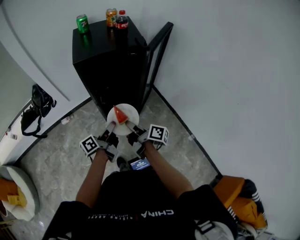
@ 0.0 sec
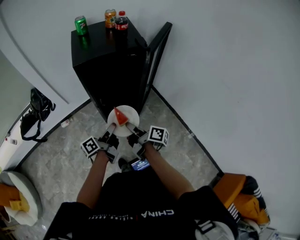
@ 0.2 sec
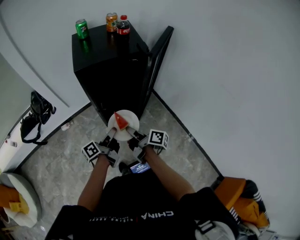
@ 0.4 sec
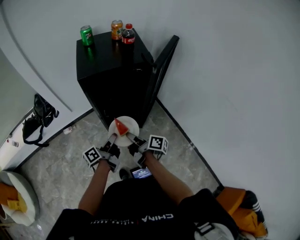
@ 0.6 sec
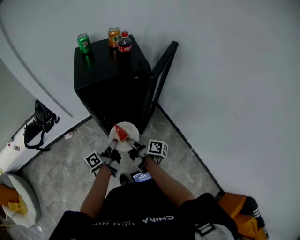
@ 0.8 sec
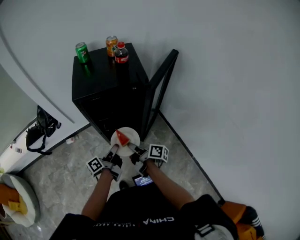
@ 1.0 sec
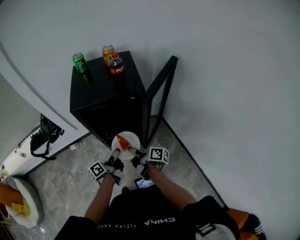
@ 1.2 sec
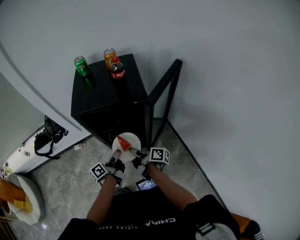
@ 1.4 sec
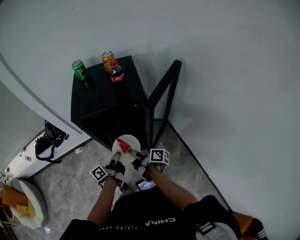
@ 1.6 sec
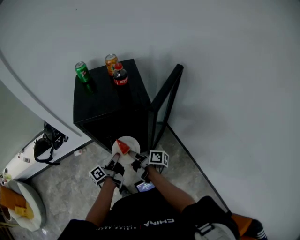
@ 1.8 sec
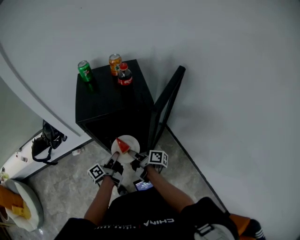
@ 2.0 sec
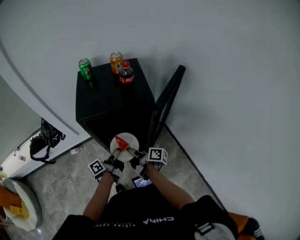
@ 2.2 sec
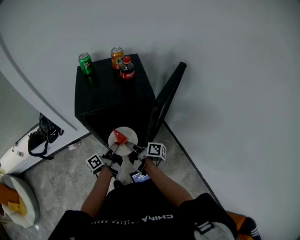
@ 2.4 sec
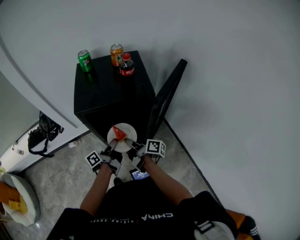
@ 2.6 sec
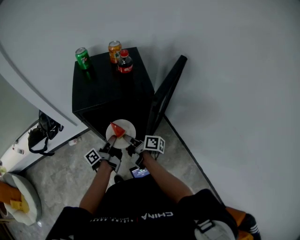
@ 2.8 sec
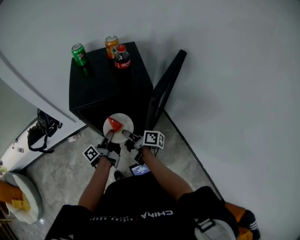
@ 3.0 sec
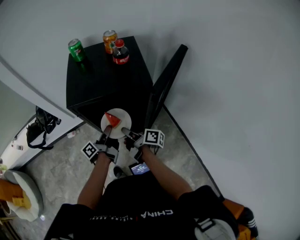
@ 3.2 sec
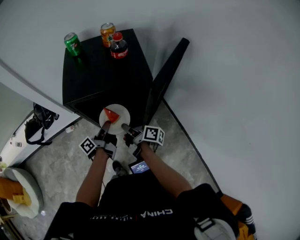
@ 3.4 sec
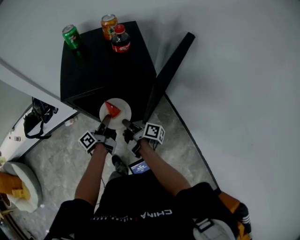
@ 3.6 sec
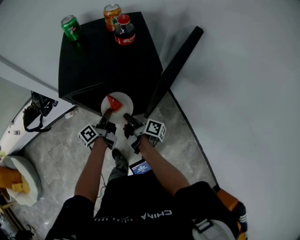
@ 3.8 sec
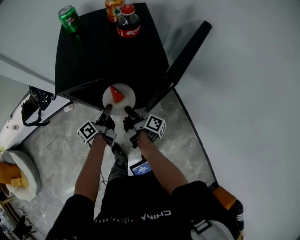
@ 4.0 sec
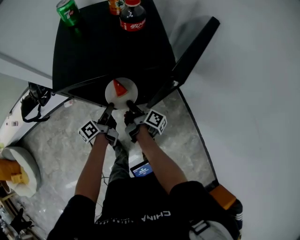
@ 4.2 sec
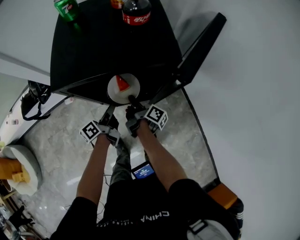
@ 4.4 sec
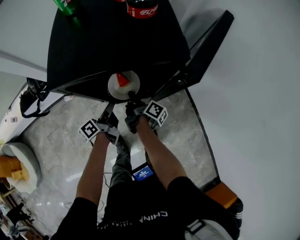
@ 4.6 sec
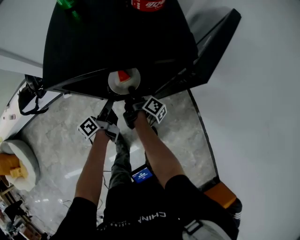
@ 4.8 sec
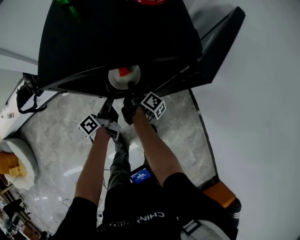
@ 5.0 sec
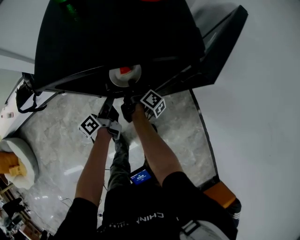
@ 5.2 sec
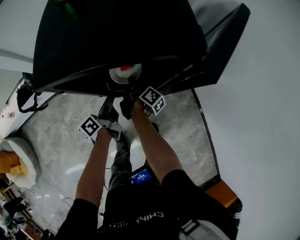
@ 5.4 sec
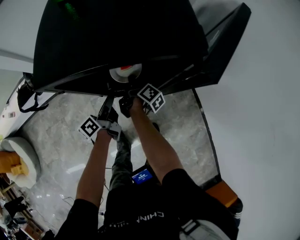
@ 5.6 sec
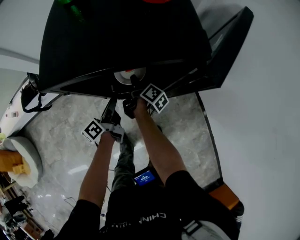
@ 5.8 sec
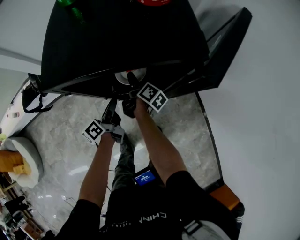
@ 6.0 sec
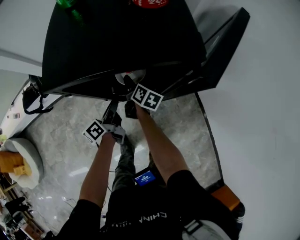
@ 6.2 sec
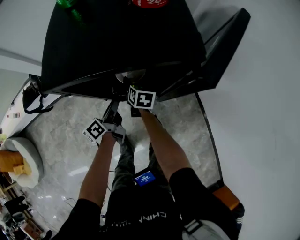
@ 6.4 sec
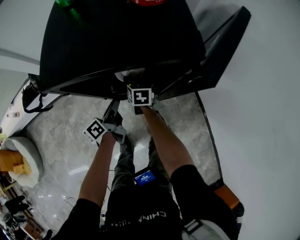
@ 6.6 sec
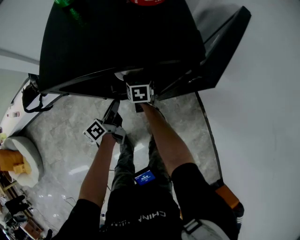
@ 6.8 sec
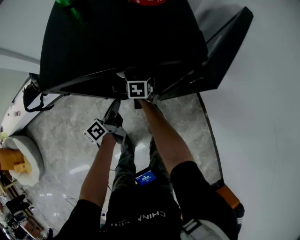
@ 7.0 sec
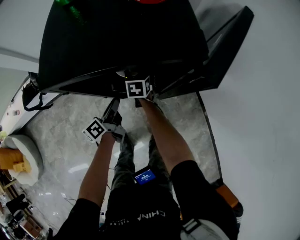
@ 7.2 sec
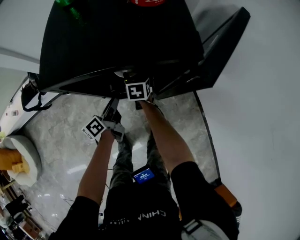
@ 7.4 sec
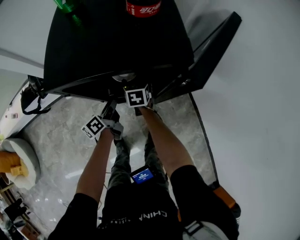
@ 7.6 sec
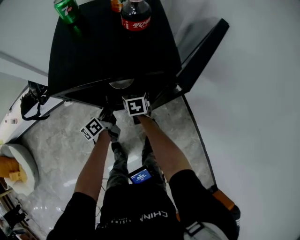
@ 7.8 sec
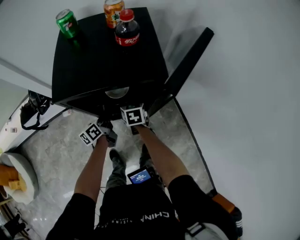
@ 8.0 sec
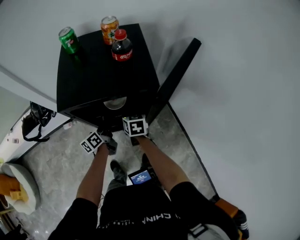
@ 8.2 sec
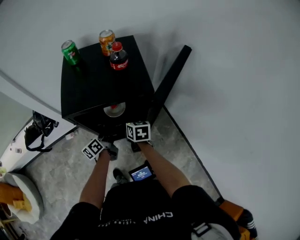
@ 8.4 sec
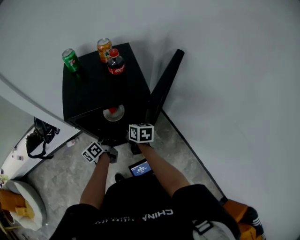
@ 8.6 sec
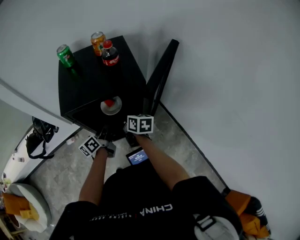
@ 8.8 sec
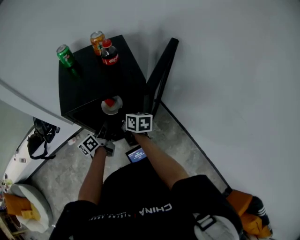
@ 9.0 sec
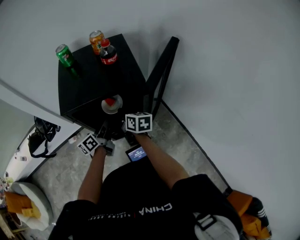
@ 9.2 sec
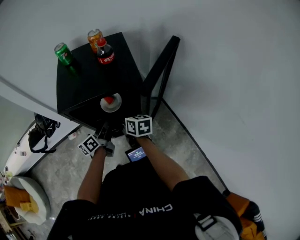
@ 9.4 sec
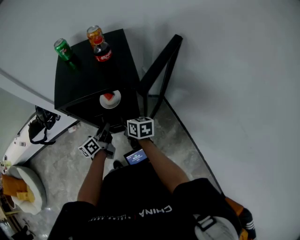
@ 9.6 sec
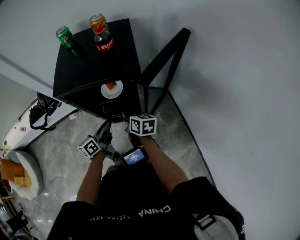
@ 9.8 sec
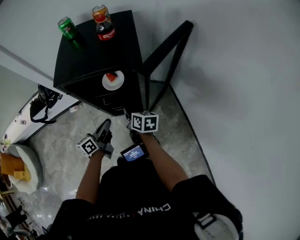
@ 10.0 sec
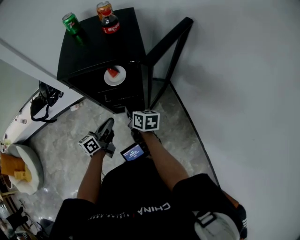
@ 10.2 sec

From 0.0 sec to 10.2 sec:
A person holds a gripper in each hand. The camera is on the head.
From 0.0 sec to 1.4 sec: Both grippers move forward, roughly 15 cm.
From 1.4 sec to 3.0 sec: Both grippers move forward, some 10 cm.
From 3.0 sec to 4.4 sec: The right gripper moves downward and forward, roughly 15 cm, and rotates roughly 20 degrees; the left gripper goes about 10 cm downward, and opens.
From 4.4 sec to 5.8 sec: The right gripper moves forward and downward, about 10 cm, while the left gripper shifts about 5 cm downward.
From 5.8 sec to 7.2 sec: The right gripper rotates around the line of its fingers by some 70 degrees, counterclockwise from behind, and opens its fingers.
From 7.2 sec to 8.8 sec: The left gripper moves upward, roughly 15 cm, rotates approximately 20 degrees, and closes its fingers; the right gripper travels upward and backward by some 25 cm, turns by some 30 degrees, and closes.
From 8.8 sec to 10.2 sec: Both grippers move backward, some 15 cm.

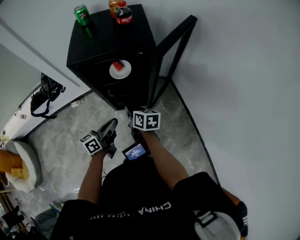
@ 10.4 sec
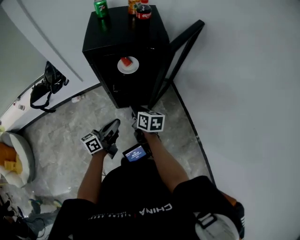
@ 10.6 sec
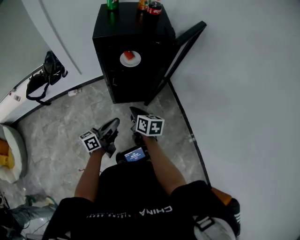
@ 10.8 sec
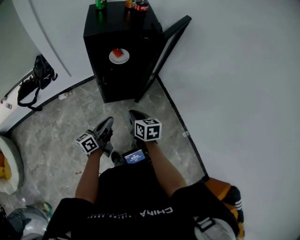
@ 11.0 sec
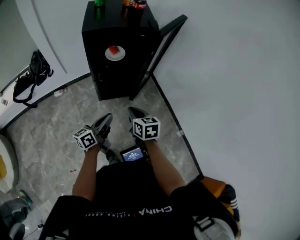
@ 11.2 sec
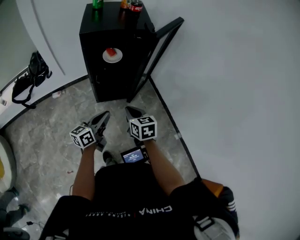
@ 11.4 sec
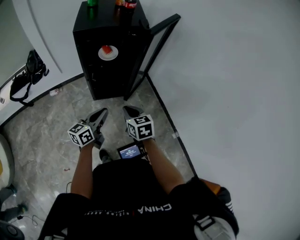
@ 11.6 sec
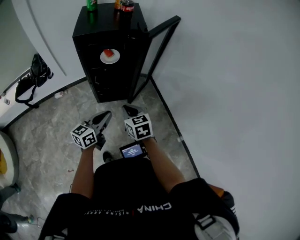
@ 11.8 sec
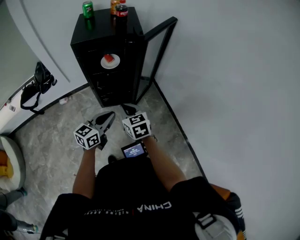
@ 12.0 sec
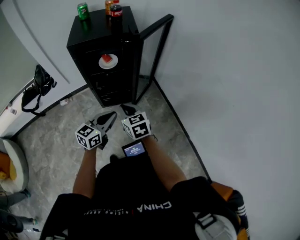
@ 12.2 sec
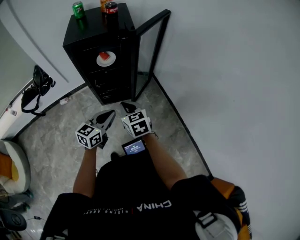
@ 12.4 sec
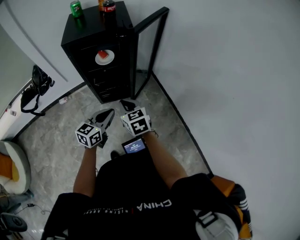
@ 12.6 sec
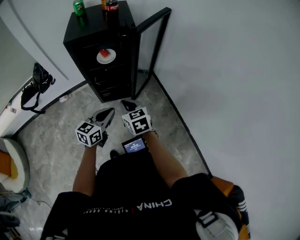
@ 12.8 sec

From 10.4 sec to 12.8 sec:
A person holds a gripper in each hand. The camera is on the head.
From 10.4 sec to 11.6 sec: The grippers both shift backward by roughly 15 cm. The right gripper turns by approximately 30 degrees.
From 11.6 sec to 12.8 sec: The left gripper goes some 10 cm to the right, and swivels approximately 20 degrees.

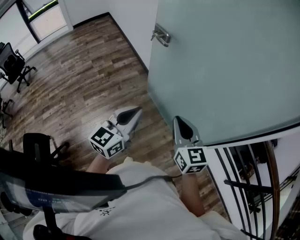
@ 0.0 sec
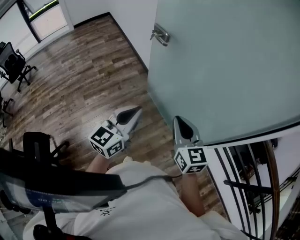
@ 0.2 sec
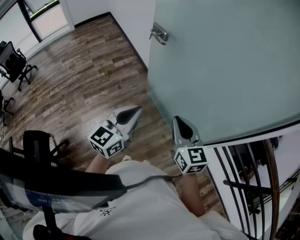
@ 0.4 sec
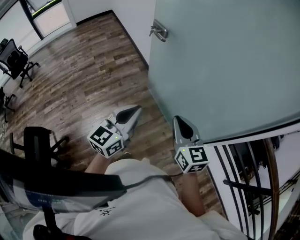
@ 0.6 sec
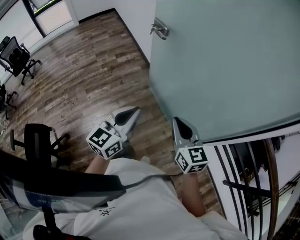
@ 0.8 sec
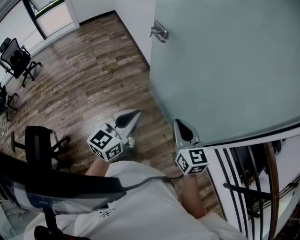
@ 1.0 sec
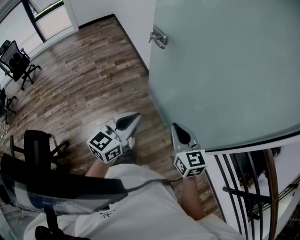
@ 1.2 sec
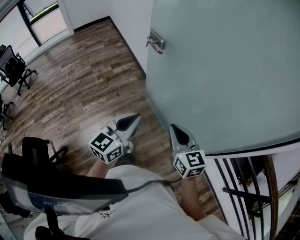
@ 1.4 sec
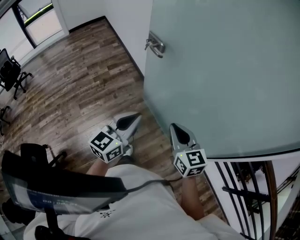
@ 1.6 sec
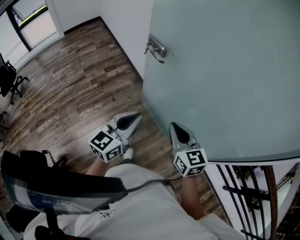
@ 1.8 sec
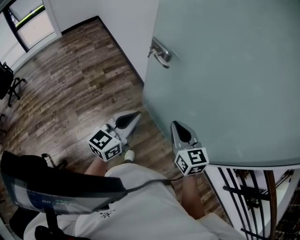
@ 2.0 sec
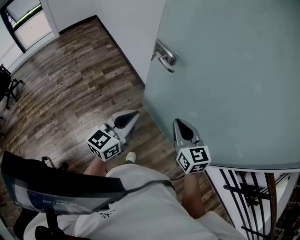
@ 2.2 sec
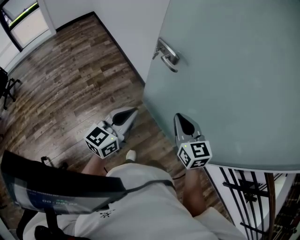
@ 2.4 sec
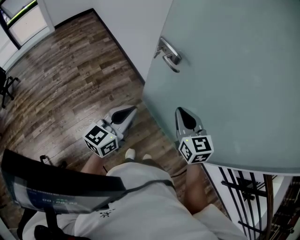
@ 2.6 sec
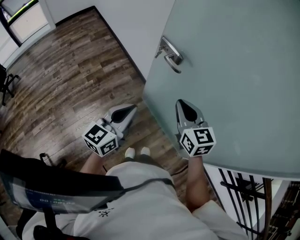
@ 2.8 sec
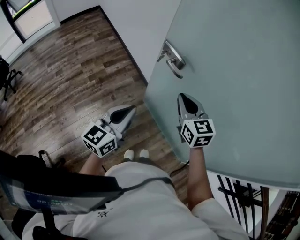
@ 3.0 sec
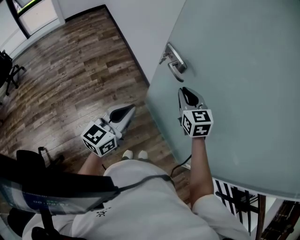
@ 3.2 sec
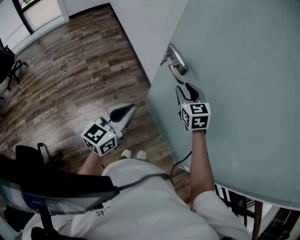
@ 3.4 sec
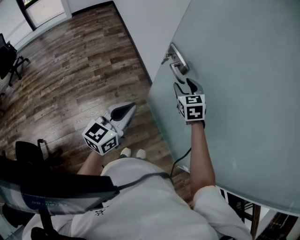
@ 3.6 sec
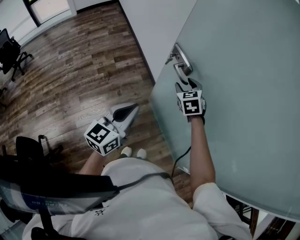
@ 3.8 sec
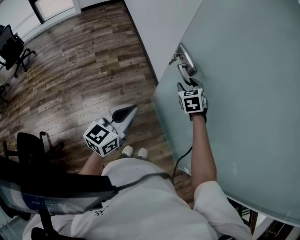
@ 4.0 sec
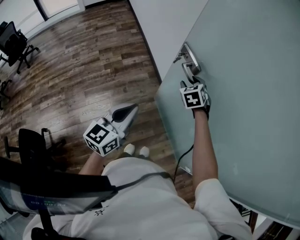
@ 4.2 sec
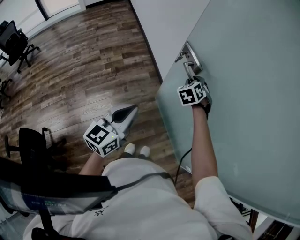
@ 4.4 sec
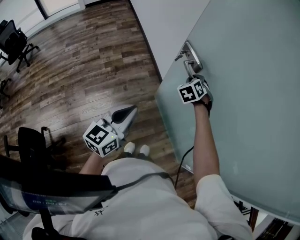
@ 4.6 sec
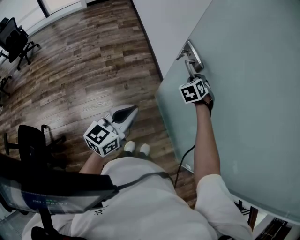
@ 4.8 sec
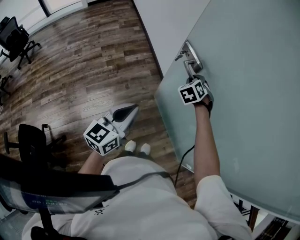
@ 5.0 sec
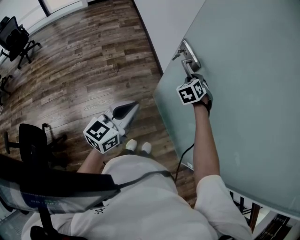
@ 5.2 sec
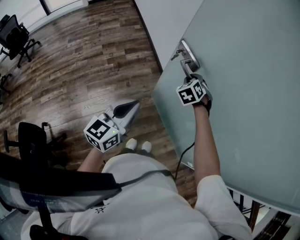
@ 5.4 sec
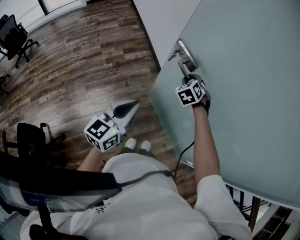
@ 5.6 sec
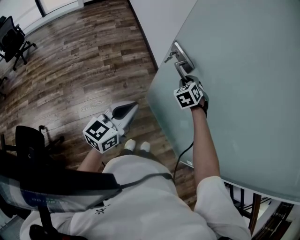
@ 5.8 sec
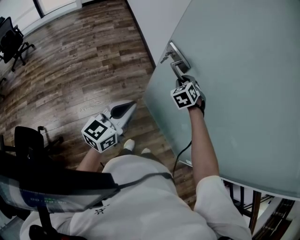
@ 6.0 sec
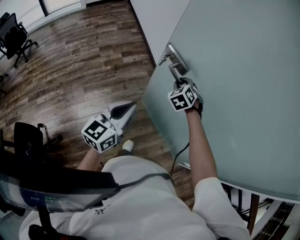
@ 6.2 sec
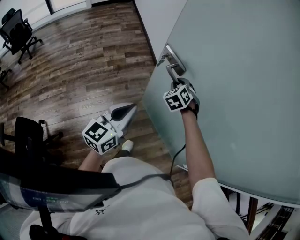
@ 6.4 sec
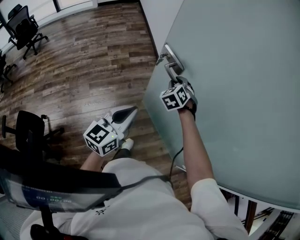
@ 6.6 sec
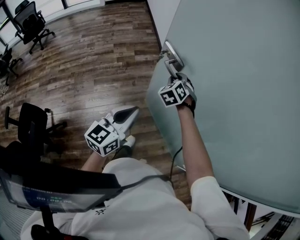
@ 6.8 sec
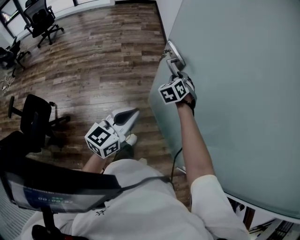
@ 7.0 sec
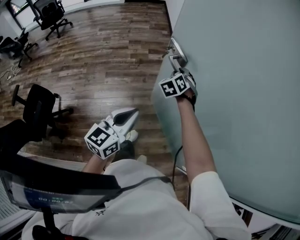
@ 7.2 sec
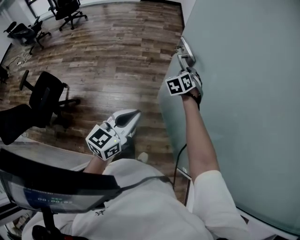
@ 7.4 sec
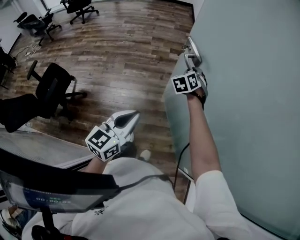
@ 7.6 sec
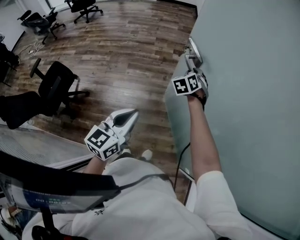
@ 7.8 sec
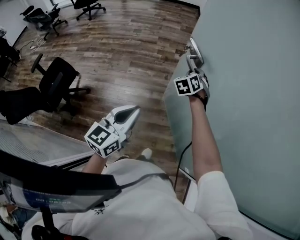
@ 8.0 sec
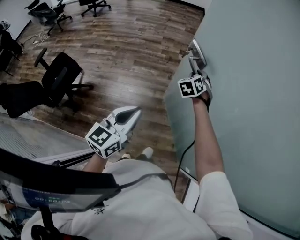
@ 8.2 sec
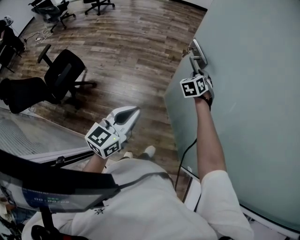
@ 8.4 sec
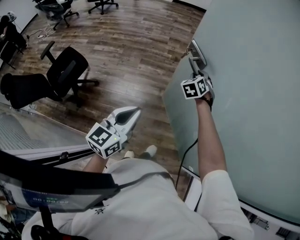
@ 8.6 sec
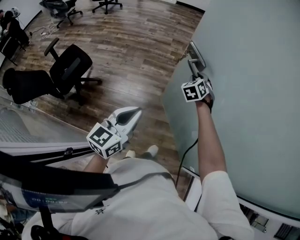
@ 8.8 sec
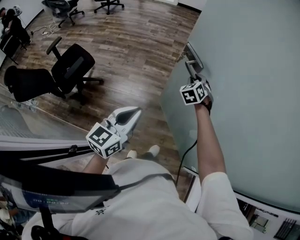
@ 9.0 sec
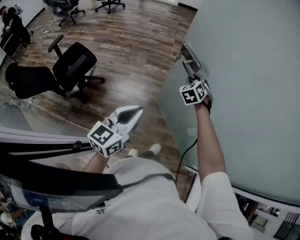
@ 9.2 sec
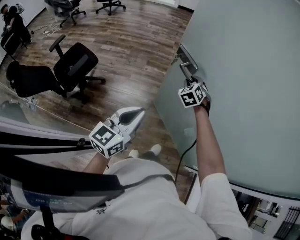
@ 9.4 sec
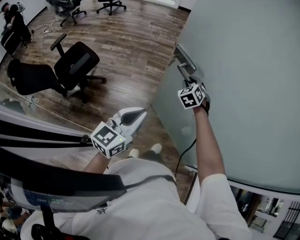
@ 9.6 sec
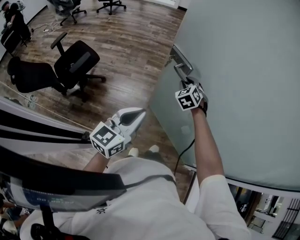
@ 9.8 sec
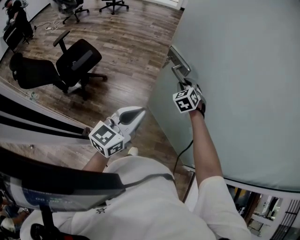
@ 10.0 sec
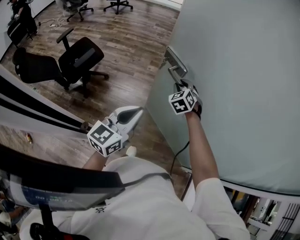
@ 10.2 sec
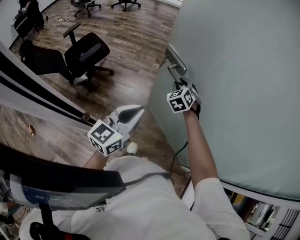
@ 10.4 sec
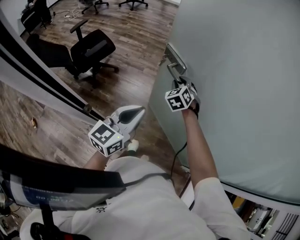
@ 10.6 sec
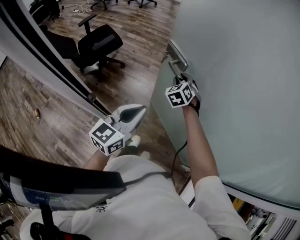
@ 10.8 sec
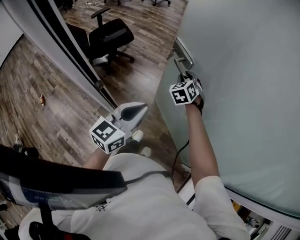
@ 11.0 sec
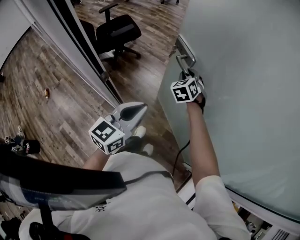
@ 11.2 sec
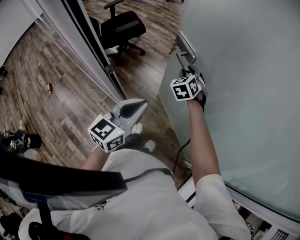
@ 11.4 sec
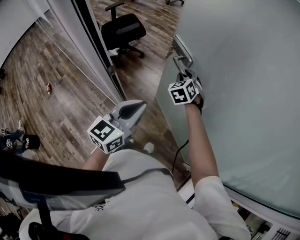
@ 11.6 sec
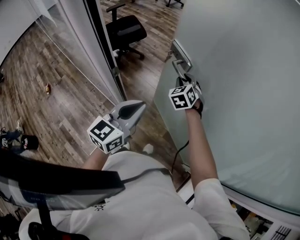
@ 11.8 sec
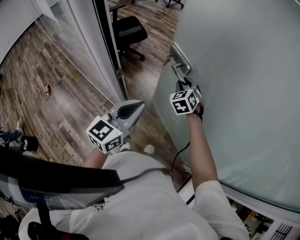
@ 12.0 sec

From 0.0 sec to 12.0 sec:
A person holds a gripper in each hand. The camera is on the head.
From 0.0 sec to 1.6 sec: Both grippers move forward, some 10 cm.
From 1.6 sec to 3.0 sec: The right gripper shifts about 30 cm forward and to the left. Meanwhile the left gripper goes roughly 25 cm to the left and forward.
From 3.0 sec to 4.4 sec: The right gripper shifts some 20 cm forward and downward, turns by some 50 degrees, and opens up.
From 4.4 sec to 6.0 sec: The left gripper heads backward, covering approximately 5 cm. Meanwhile the right gripper is displaced backward and to the left by about 10 cm.
From 6.0 sec to 7.6 sec: The left gripper heads backward and to the right, covering approximately 25 cm, and changes its angle by roughly 30 degrees; the right gripper is displaced backward and to the left by approximately 15 cm.
From 7.6 sec to 9.0 sec: The grippers both shift backward and to the left by roughly 20 cm.
From 9.0 sec to 10.4 sec: The left gripper goes roughly 10 cm backward; the right gripper goes about 20 cm backward and to the left.
From 10.4 sec to 12.0 sec: The left gripper is displaced backward by about 15 cm; the right gripper goes about 20 cm backward and to the left.
